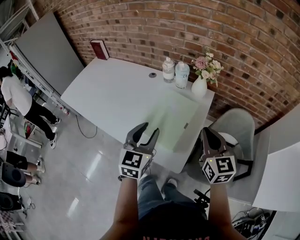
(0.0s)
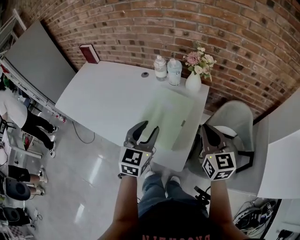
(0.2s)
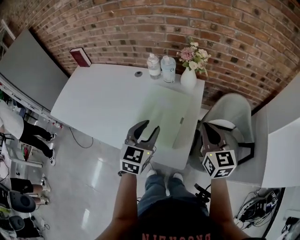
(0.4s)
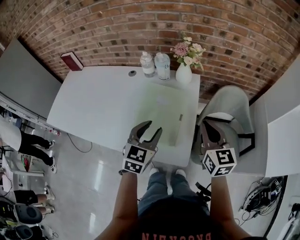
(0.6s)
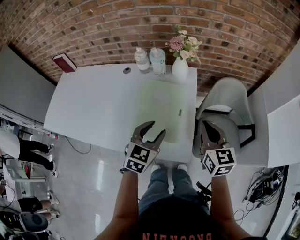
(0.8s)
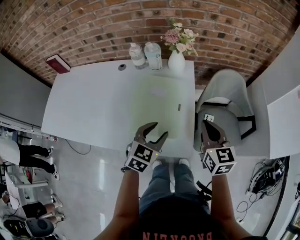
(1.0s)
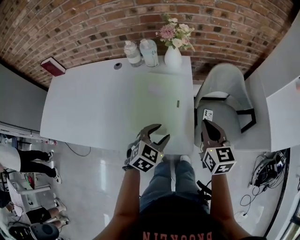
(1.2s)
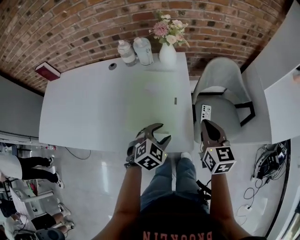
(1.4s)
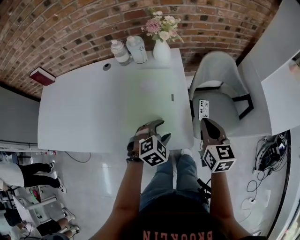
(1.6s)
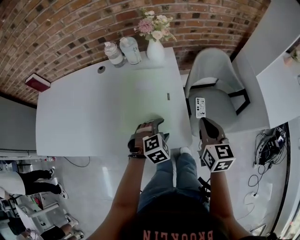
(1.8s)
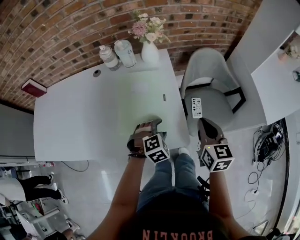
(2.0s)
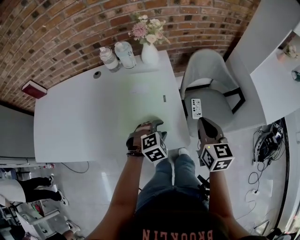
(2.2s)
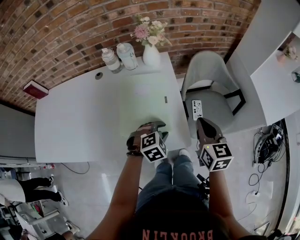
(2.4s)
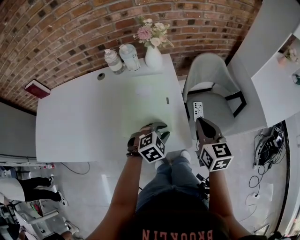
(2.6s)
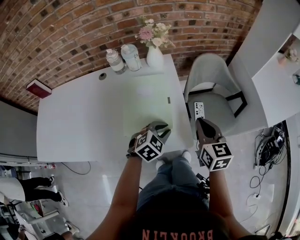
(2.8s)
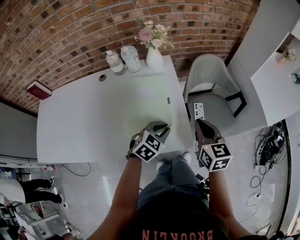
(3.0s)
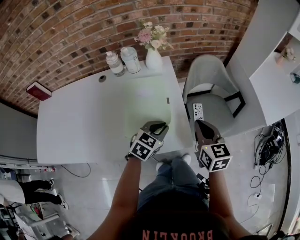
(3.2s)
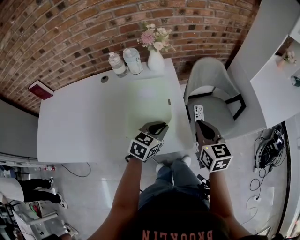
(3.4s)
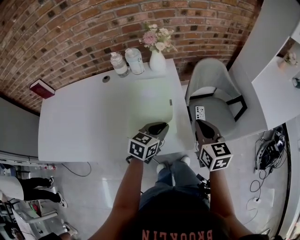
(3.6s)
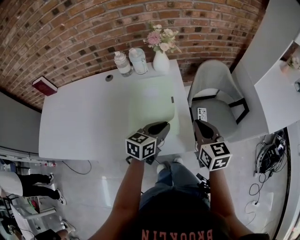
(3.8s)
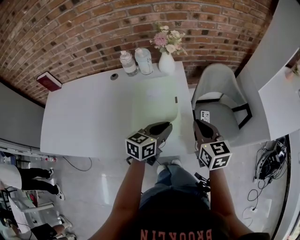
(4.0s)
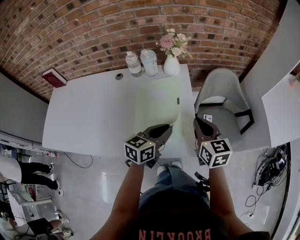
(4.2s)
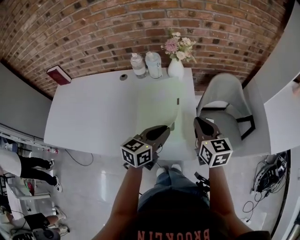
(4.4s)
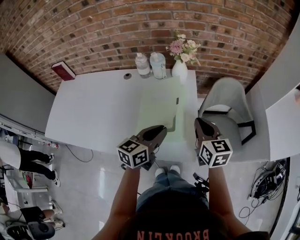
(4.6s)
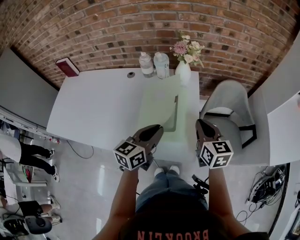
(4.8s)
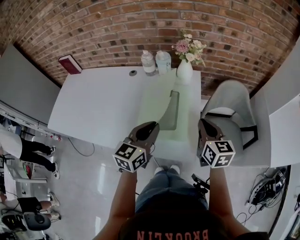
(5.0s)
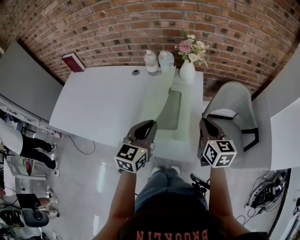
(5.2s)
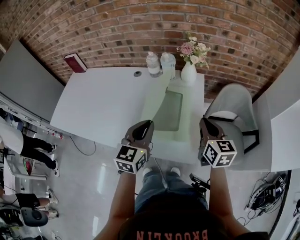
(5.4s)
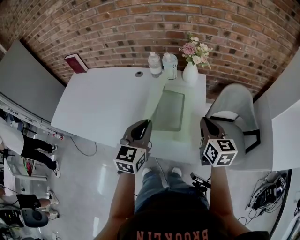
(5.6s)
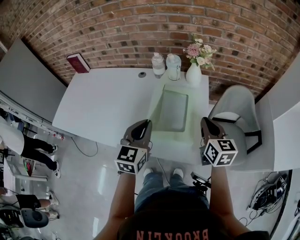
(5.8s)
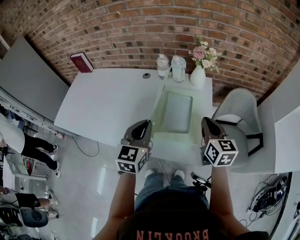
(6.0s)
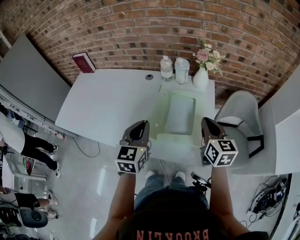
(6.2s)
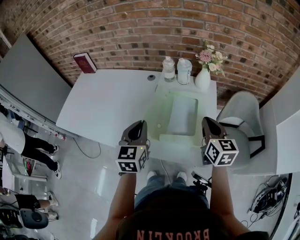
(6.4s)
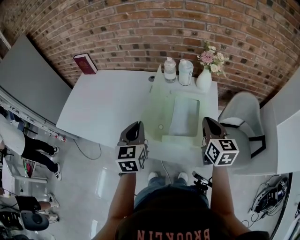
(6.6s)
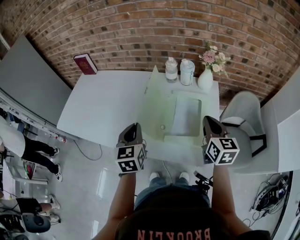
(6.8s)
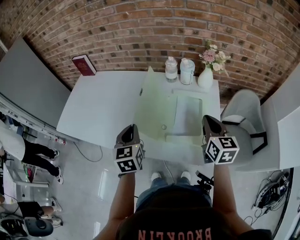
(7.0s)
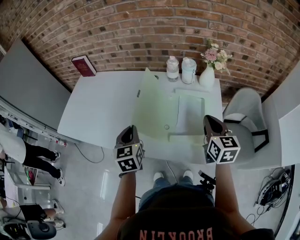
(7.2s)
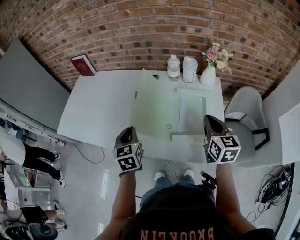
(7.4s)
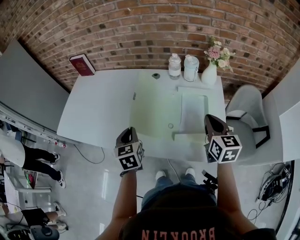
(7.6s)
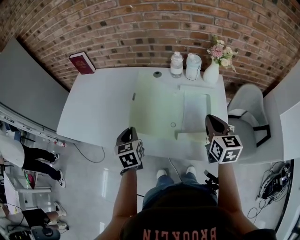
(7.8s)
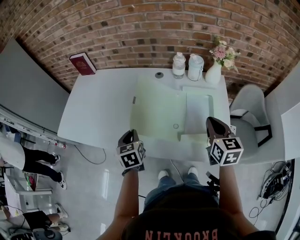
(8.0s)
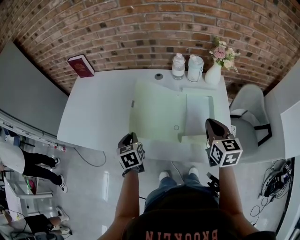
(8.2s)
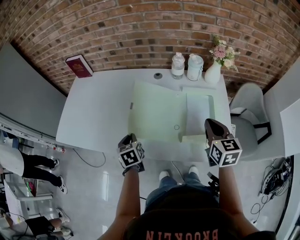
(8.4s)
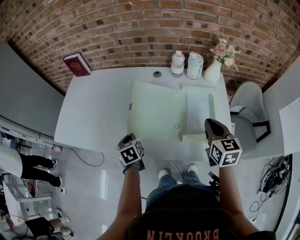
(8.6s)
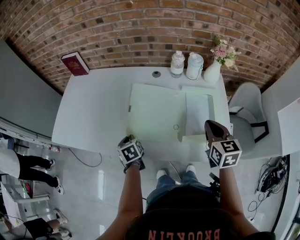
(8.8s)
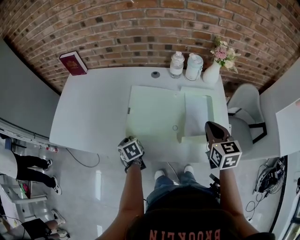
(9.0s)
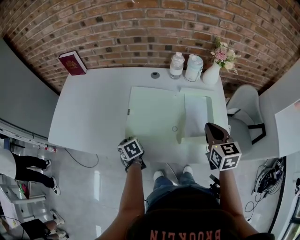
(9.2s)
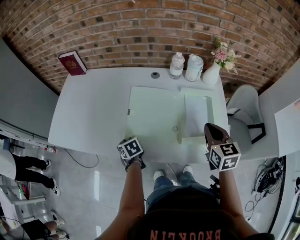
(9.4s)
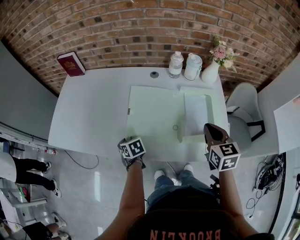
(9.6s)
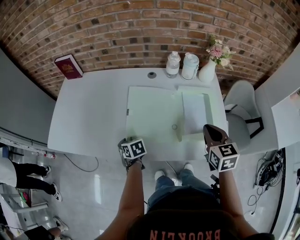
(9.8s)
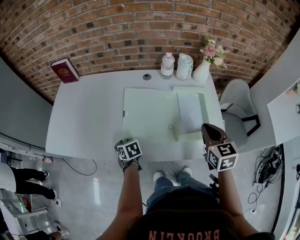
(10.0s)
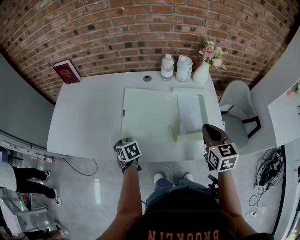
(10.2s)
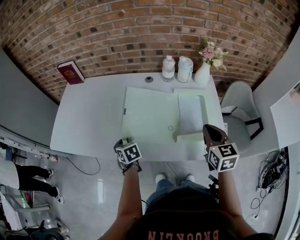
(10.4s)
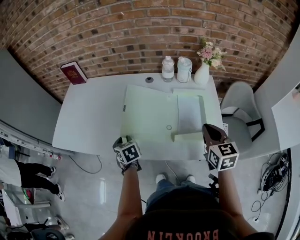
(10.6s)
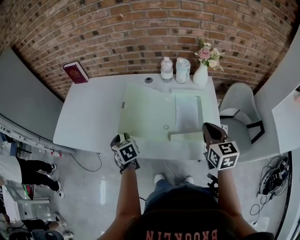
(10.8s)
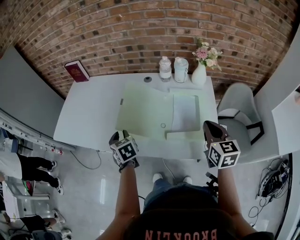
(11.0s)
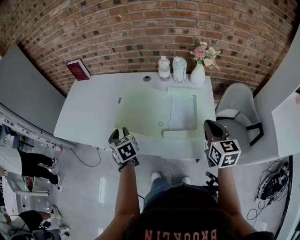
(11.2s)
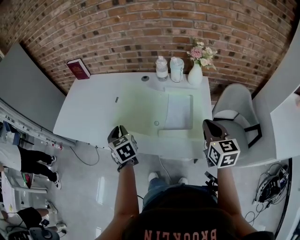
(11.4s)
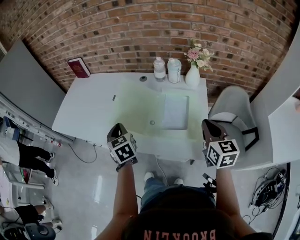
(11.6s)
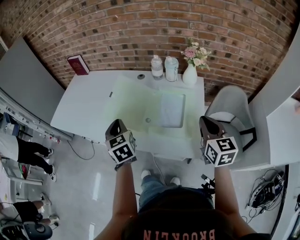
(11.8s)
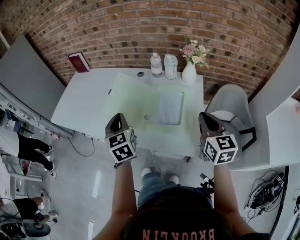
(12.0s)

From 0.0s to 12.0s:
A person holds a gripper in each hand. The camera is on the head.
From 0.0s to 1.6s: The left gripper heads downward, covering approximately 20 cm, and points its fingers about 40 degrees further downward. The right gripper goes approximately 10 cm downward, and swivels some 40 degrees.
From 1.6s to 3.0s: The left gripper closes up.
From 3.0s to 4.4s: The left gripper heads upward and to the left, covering about 10 cm, and turns by approximately 50 degrees, while the right gripper heads to the left, covering approximately 5 cm.
From 4.4s to 6.0s: The left gripper shifts roughly 15 cm to the left and upward, and swivels about 40 degrees.
From 6.0s to 7.6s: The right gripper heads to the left, covering approximately 10 cm. Meanwhile the left gripper shifts some 20 cm to the left and downward, and swivels approximately 30 degrees.
From 7.6s to 9.0s: The right gripper ends up approximately 5 cm from where it was; the left gripper heads downward and to the left, covering about 15 cm, and rotates approximately 30 degrees.
From 9.0s to 10.4s: The grippers stay close to where they were, moving slightly.
From 10.4s to 12.0s: The left gripper shifts about 30 cm upward, to the right and backward, tilts its fingers some 30 degrees upward, and closes its fingers, while the right gripper shifts approximately 15 cm to the right, upward and backward.

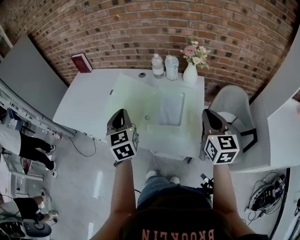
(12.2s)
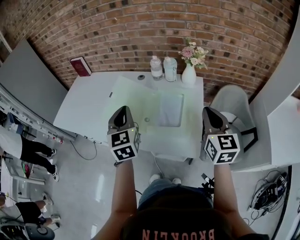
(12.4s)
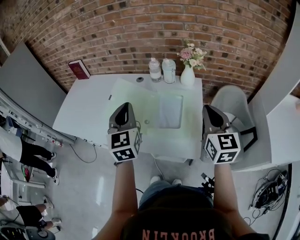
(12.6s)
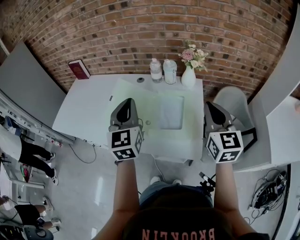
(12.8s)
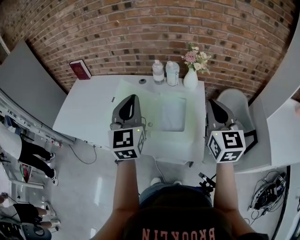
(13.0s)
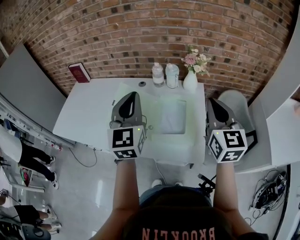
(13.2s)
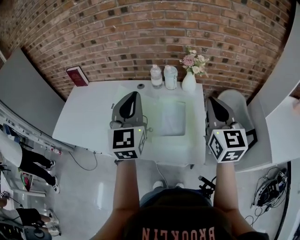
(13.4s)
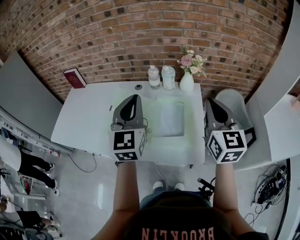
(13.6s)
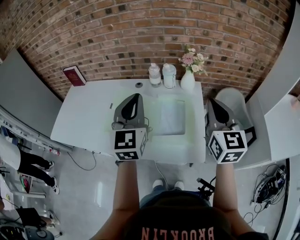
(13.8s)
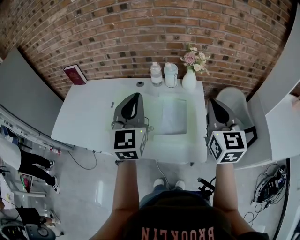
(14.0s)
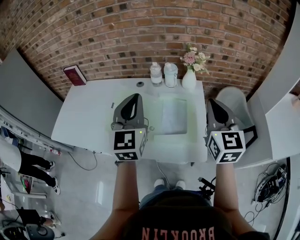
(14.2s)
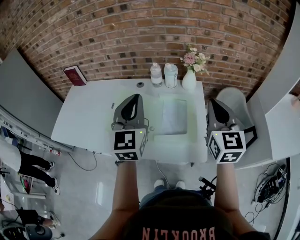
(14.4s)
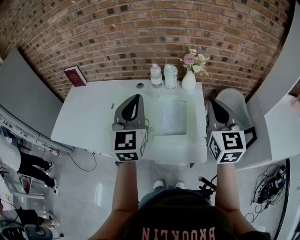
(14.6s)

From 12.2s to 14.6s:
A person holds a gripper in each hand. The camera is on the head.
From 12.2s to 13.4s: The left gripper goes approximately 15 cm upward and to the right, and swivels about 30 degrees. Meanwhile the right gripper goes roughly 10 cm upward.
From 13.4s to 14.6s: There are only small adjustments of the grippers.

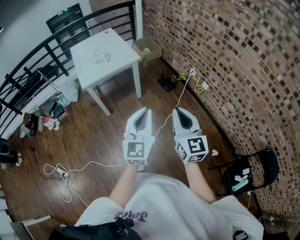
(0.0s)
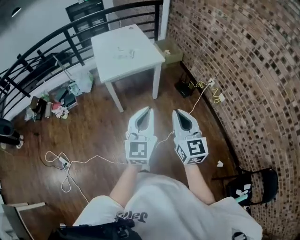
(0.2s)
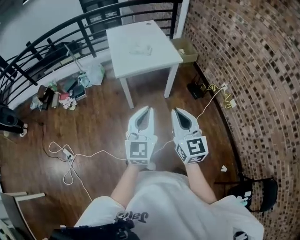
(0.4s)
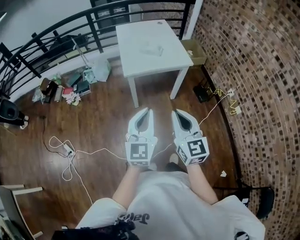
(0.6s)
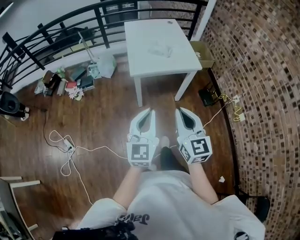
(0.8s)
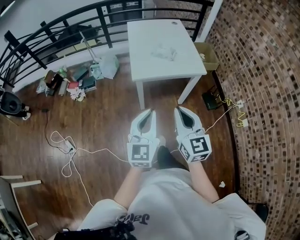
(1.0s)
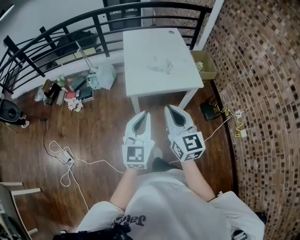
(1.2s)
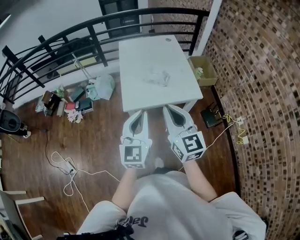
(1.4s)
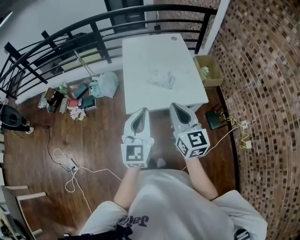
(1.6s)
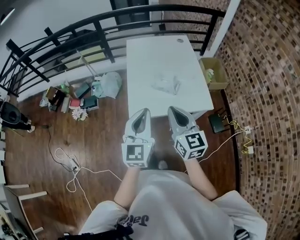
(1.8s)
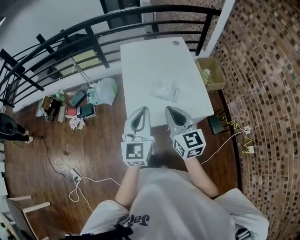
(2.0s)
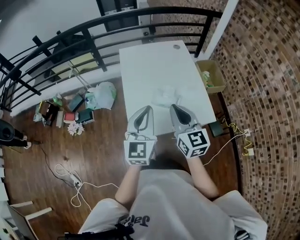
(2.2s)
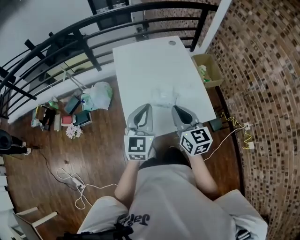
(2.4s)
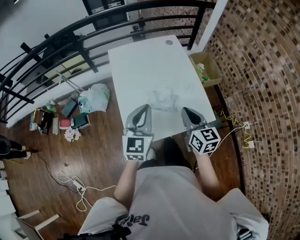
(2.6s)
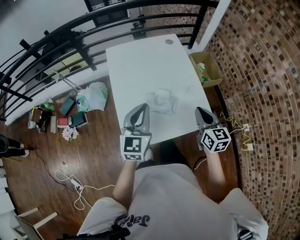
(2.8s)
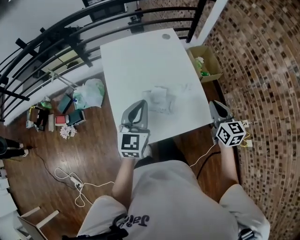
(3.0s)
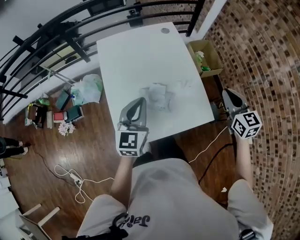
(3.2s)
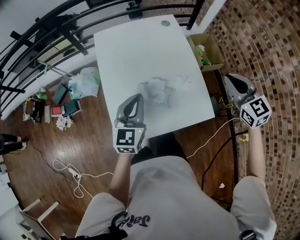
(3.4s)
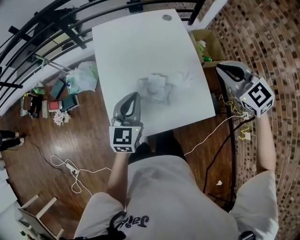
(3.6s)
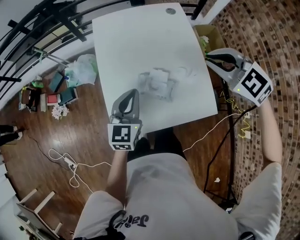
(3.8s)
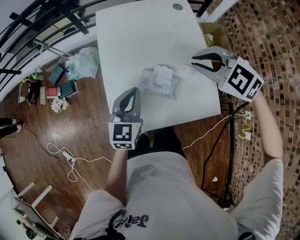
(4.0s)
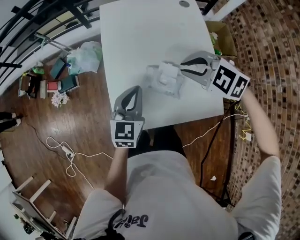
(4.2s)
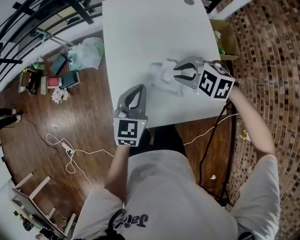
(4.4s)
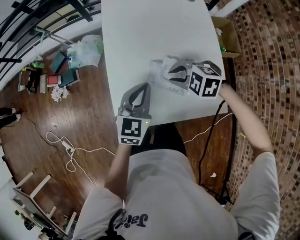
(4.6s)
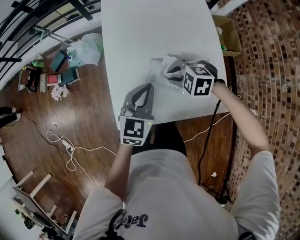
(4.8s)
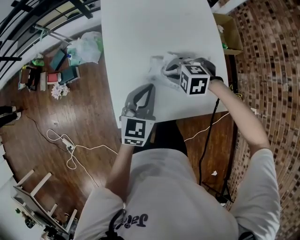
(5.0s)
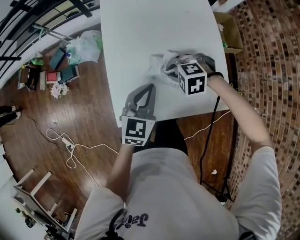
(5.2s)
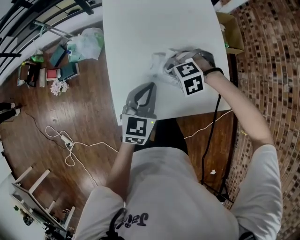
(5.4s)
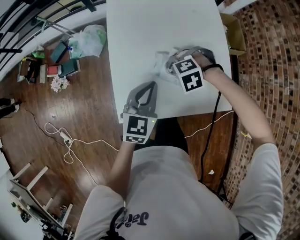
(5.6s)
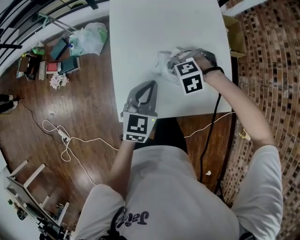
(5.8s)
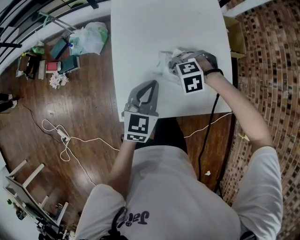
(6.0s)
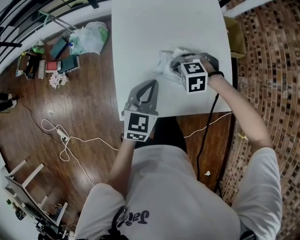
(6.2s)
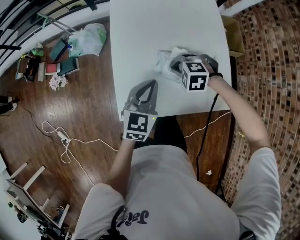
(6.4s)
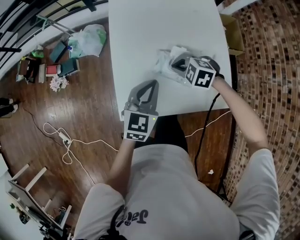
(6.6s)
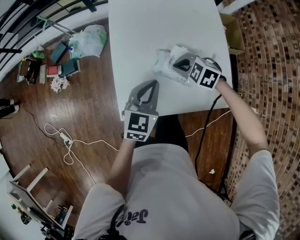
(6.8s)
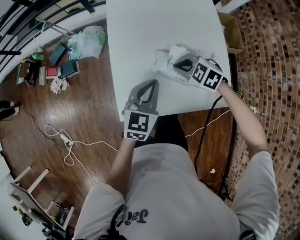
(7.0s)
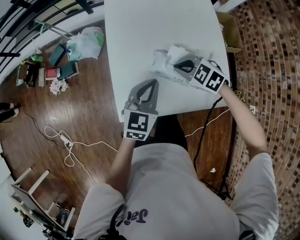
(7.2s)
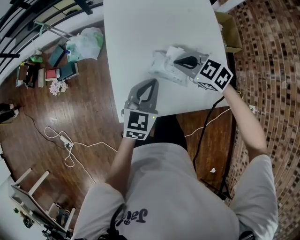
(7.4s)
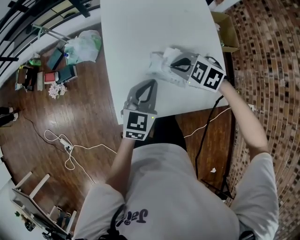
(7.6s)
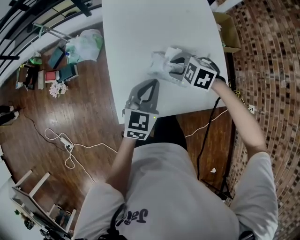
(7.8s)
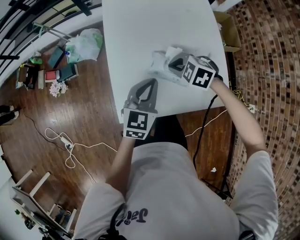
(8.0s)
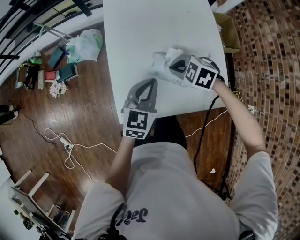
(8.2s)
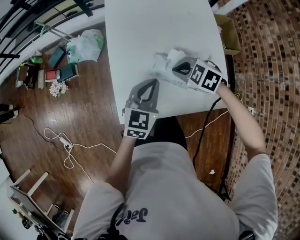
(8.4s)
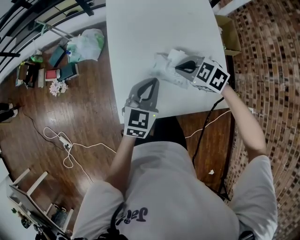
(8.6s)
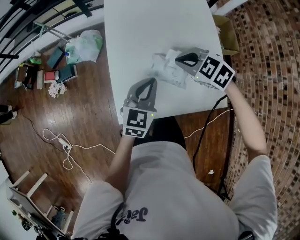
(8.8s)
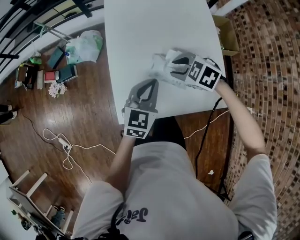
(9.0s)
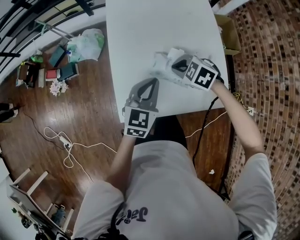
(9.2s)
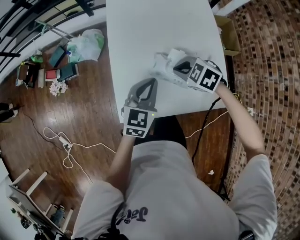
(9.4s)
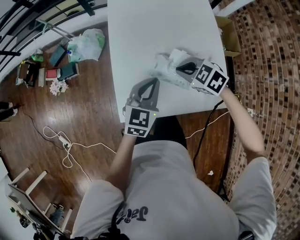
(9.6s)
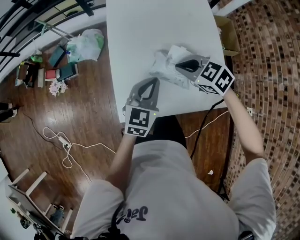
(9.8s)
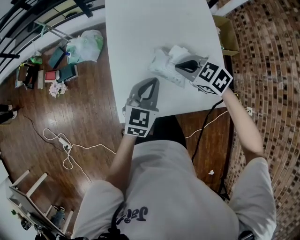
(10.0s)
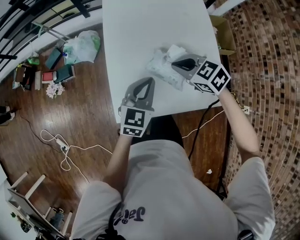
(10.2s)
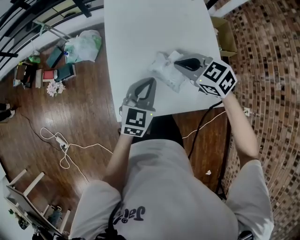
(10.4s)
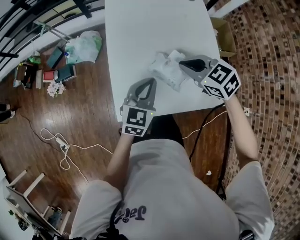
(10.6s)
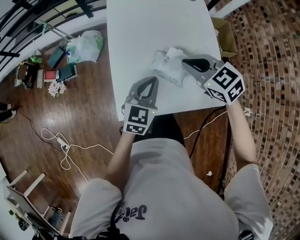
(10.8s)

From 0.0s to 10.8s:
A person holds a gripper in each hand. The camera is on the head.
From 0.0s to 1.6s: The two grippers travel together, forward and to the left, about 50 cm. The right gripper changes its angle by roughly 30 degrees; the left gripper changes its angle by some 20 degrees.
From 1.6s to 3.0s: The right gripper is displaced forward, to the right and downward by approximately 35 cm, and turns by some 20 degrees. The left gripper heads forward, covering roughly 30 cm.
From 3.0s to 4.6s: The left gripper heads downward, covering roughly 15 cm. Meanwhile the right gripper shifts by about 30 cm, and angles its fingers downward, by some 40 degrees.
From 4.6s to 6.2s: The right gripper shifts approximately 10 cm downward, and turns by approximately 20 degrees.
From 6.2s to 7.8s: The right gripper swivels about 30 degrees, and opens its fingers.
From 7.8s to 9.2s: The right gripper closes up.
From 9.2s to 10.8s: The right gripper travels upward by roughly 15 cm, and changes its angle by about 30 degrees.
